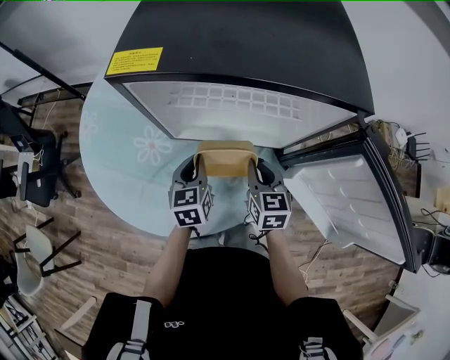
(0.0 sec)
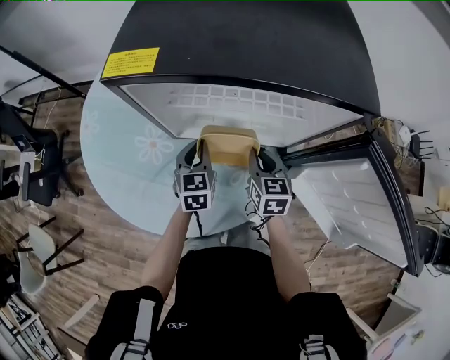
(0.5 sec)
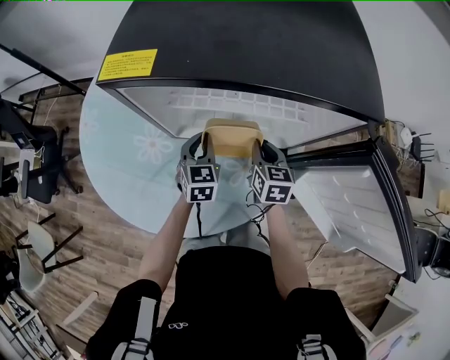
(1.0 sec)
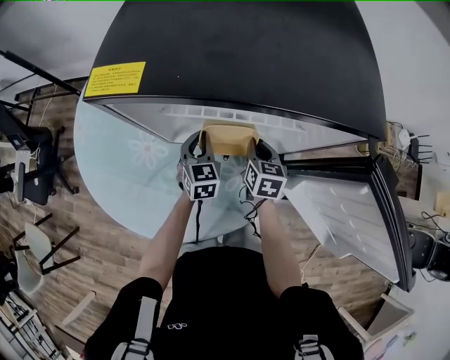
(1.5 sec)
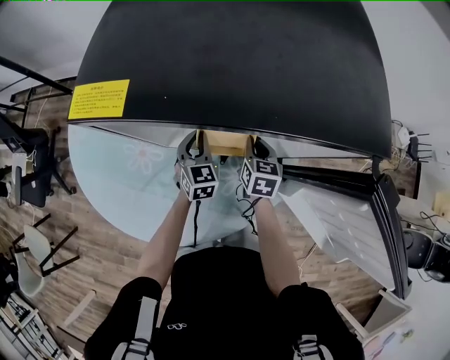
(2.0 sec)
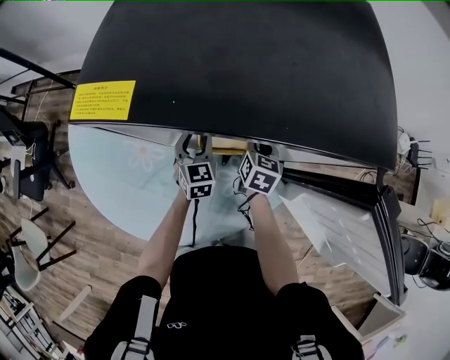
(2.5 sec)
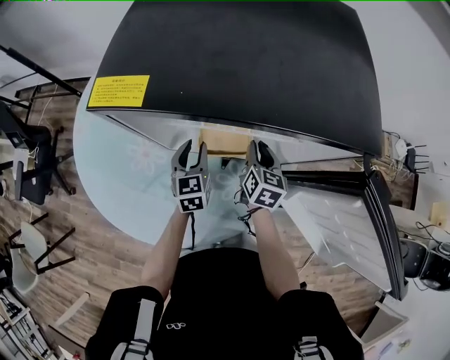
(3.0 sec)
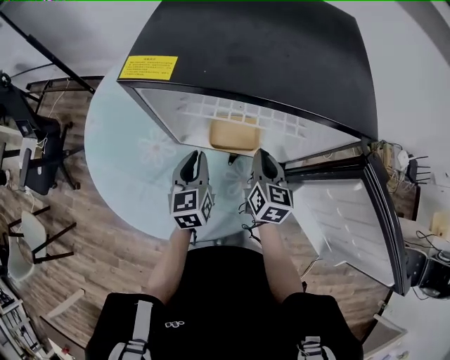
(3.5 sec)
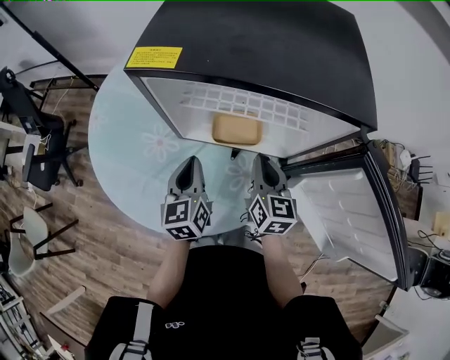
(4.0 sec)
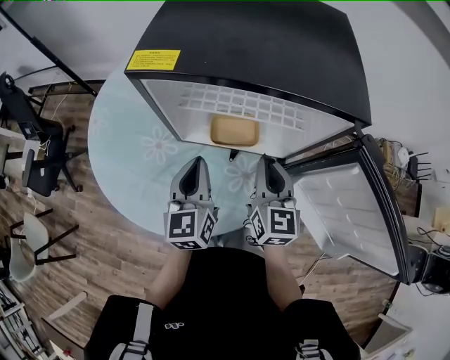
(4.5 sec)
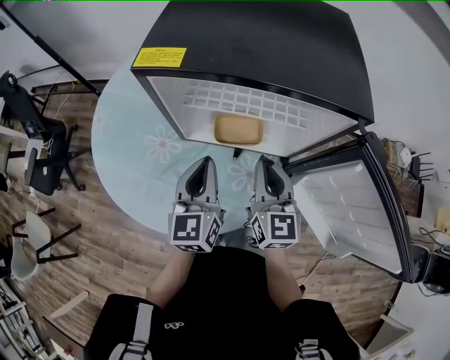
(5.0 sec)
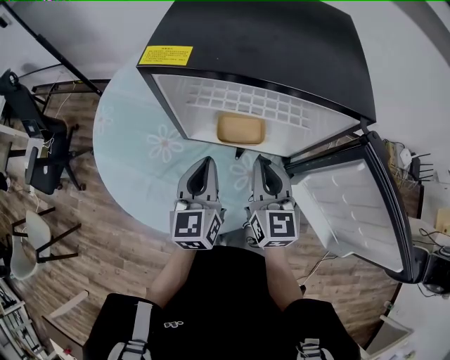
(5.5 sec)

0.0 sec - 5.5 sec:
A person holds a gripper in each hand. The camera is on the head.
0.0 sec - 2.0 sec: Both grippers move forward and downward, roughly 15 cm. The left gripper rotates about 20 degrees.
2.0 sec - 3.5 sec: The two grippers go approximately 10 cm upward and backward. The left gripper turns by roughly 20 degrees, and opens and closes again.
3.5 sec - 5.5 sec: Both grippers travel together upward and backward, approximately 10 cm.

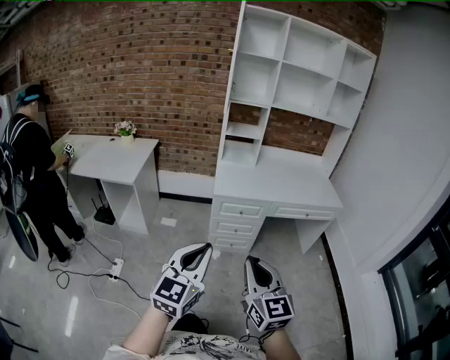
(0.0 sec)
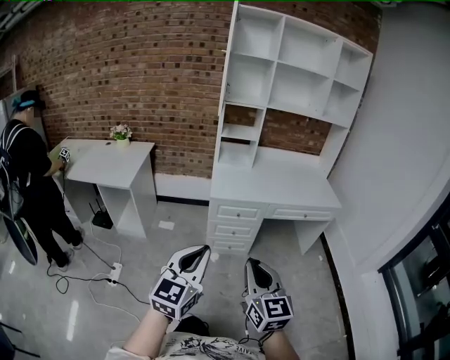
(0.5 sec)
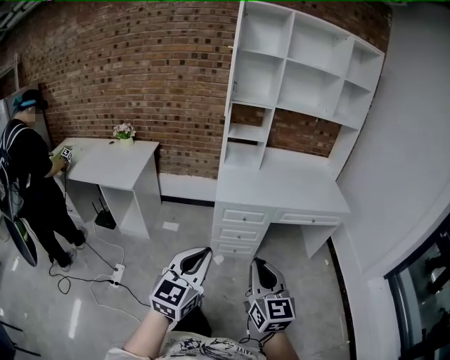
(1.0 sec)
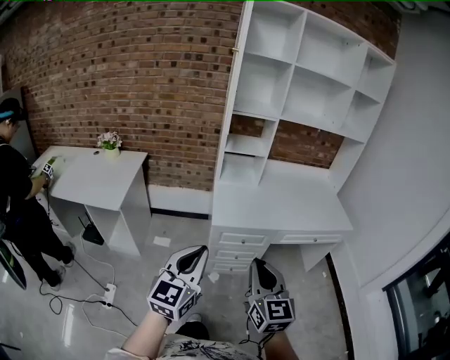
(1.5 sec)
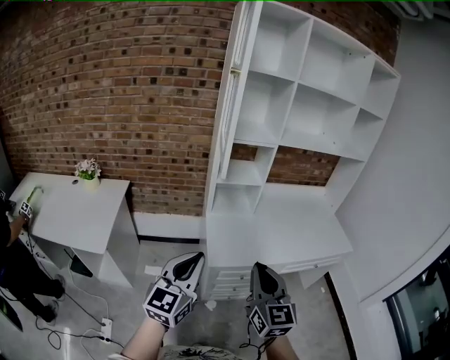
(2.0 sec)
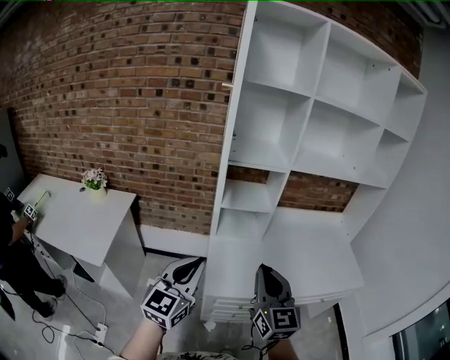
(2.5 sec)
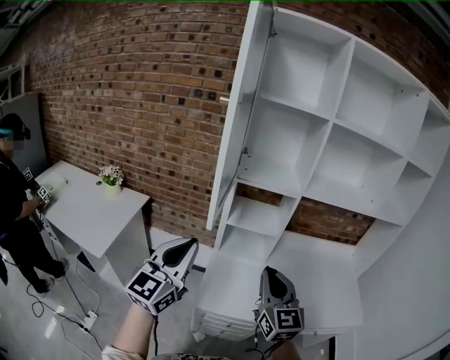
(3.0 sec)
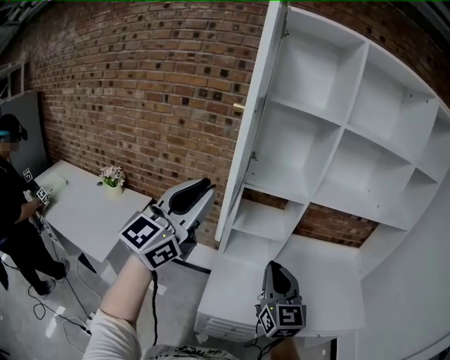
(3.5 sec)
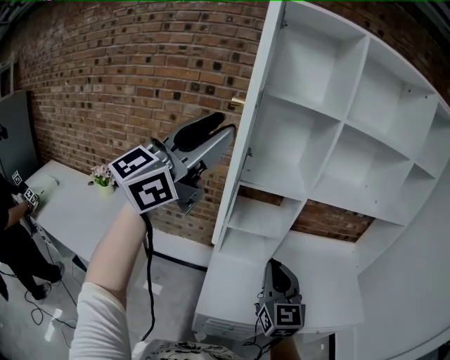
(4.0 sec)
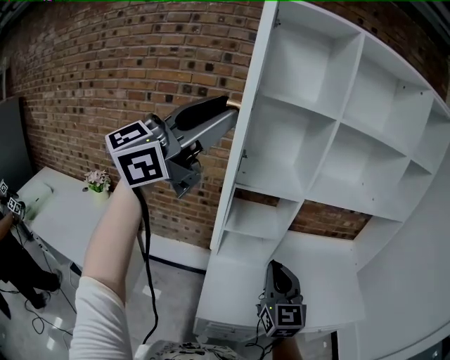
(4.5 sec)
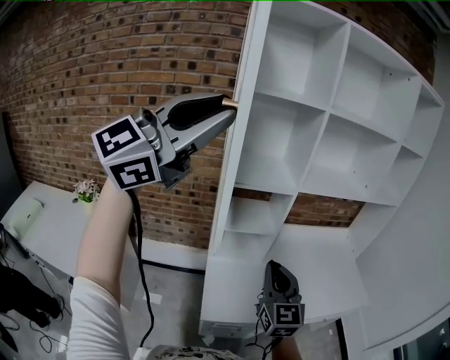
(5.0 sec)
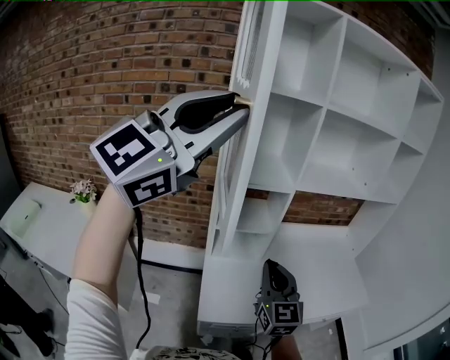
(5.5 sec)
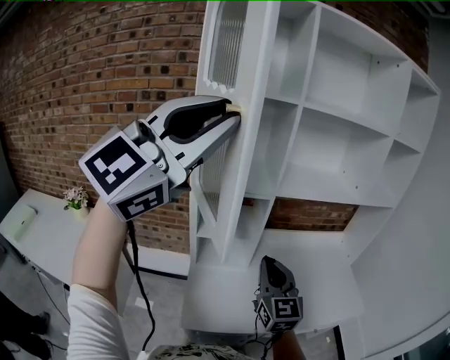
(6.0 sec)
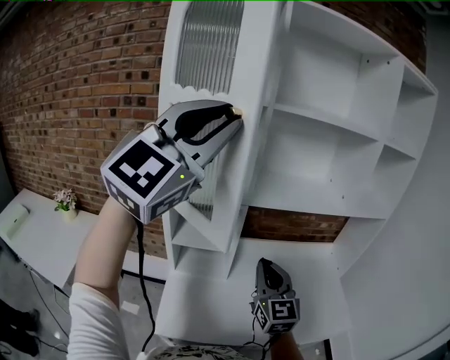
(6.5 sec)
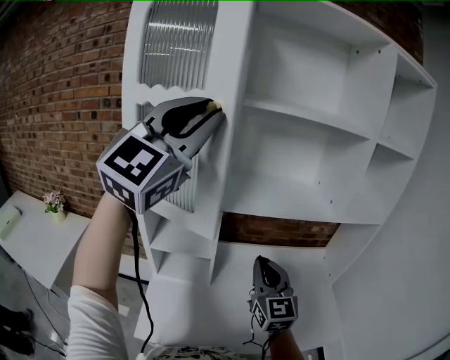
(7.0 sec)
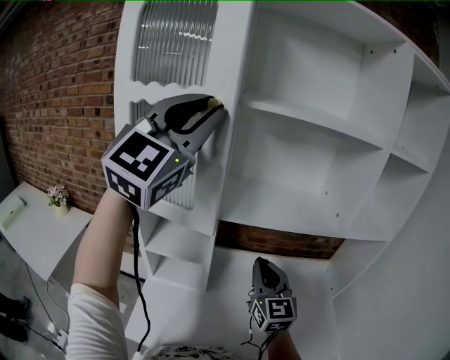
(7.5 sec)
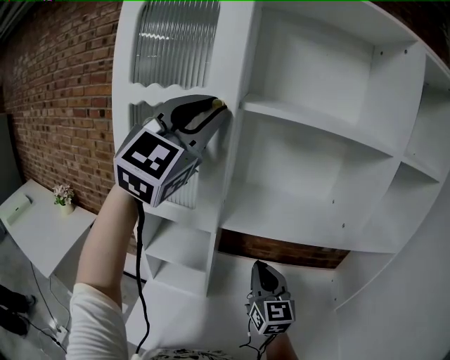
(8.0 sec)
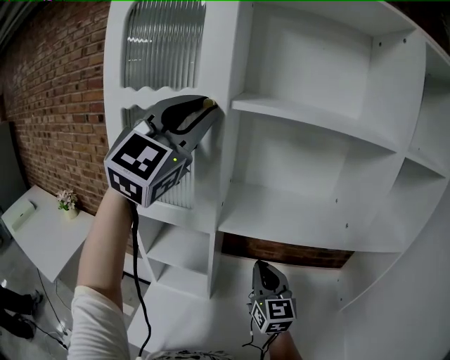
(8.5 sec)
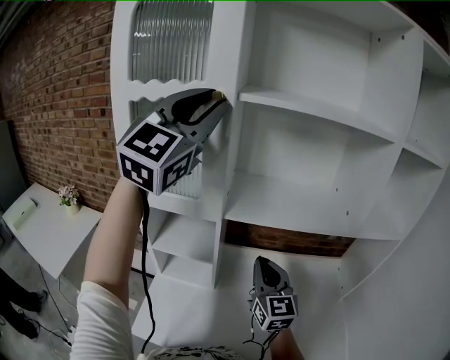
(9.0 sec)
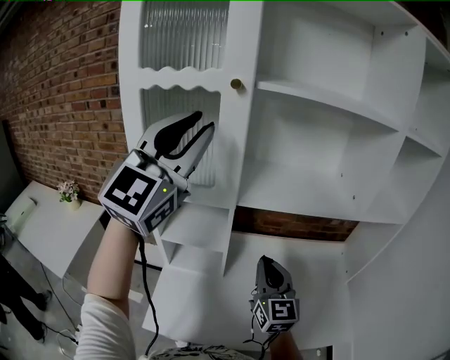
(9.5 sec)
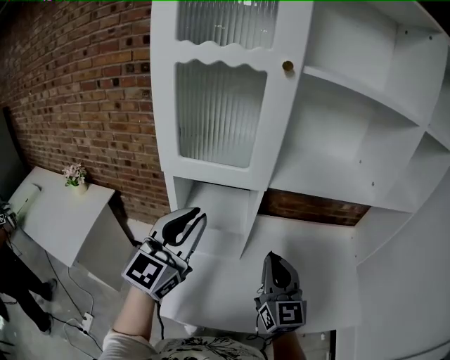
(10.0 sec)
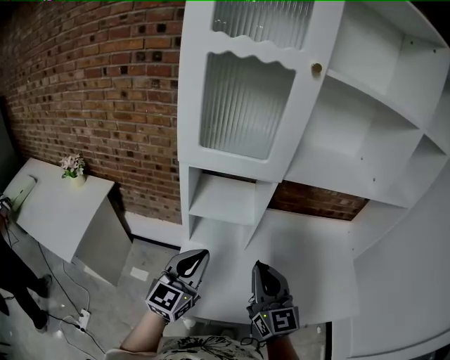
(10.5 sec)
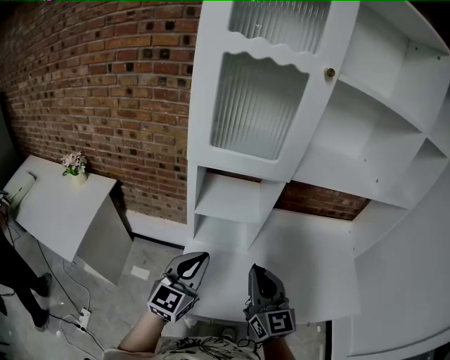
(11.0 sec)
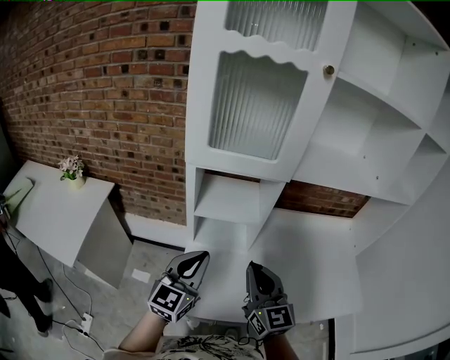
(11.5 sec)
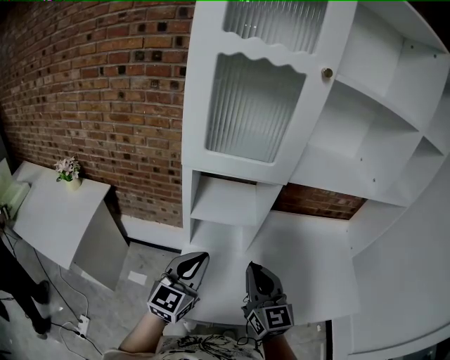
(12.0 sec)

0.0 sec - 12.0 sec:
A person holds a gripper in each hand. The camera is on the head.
0.0 sec - 2.0 sec: The pair of grippers is taken forward, approximately 50 cm.
2.0 sec - 4.0 sec: The right gripper is displaced forward by roughly 30 cm, while the left gripper heads upward and forward, covering some 50 cm, swivels about 30 degrees, and opens its fingers.
4.0 sec - 6.0 sec: The left gripper goes some 15 cm to the right and forward, and changes its angle by about 30 degrees, while the right gripper is displaced forward and to the right by roughly 10 cm.
6.0 sec - 8.0 sec: Both grippers move forward and to the right, about 30 cm. The left gripper changes its angle by some 30 degrees.
8.0 sec - 10.0 sec: The right gripper goes approximately 15 cm backward and to the left. The left gripper moves downward and backward, about 30 cm, and swivels some 30 degrees.
10.0 sec - 12.0 sec: The left gripper moves downward, approximately 15 cm, while the right gripper travels to the left and downward by approximately 10 cm.

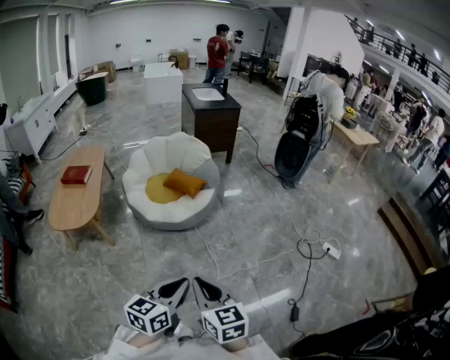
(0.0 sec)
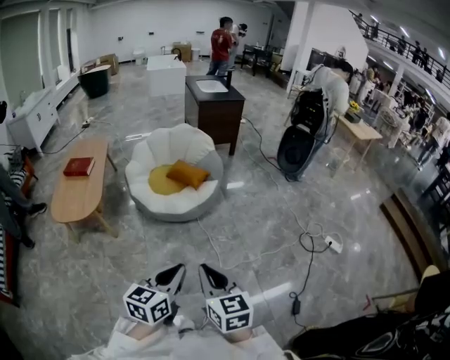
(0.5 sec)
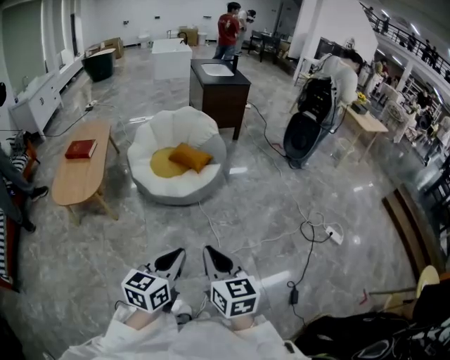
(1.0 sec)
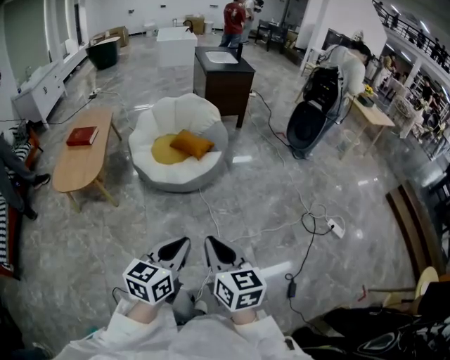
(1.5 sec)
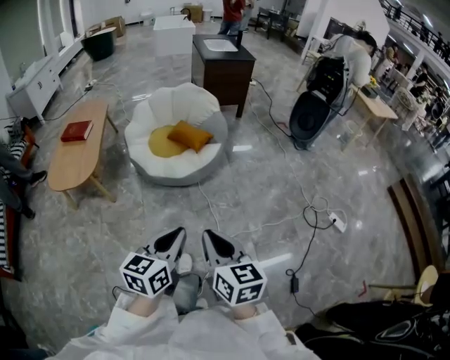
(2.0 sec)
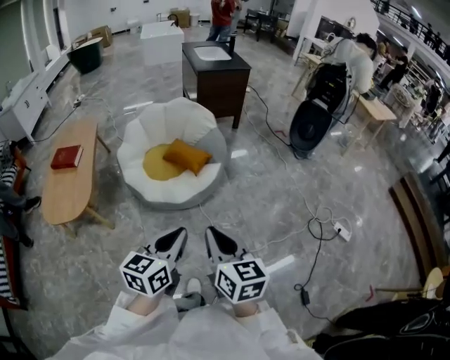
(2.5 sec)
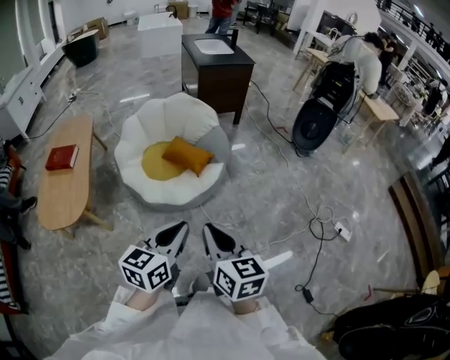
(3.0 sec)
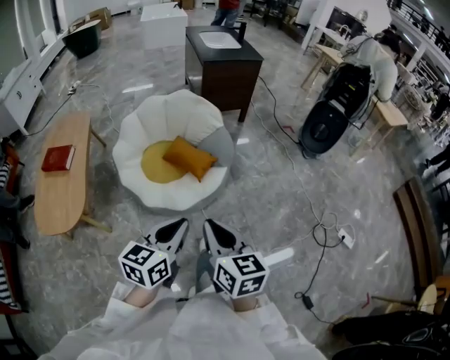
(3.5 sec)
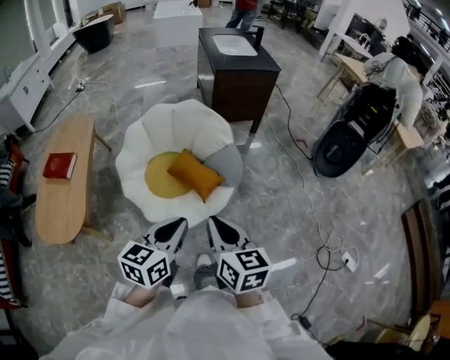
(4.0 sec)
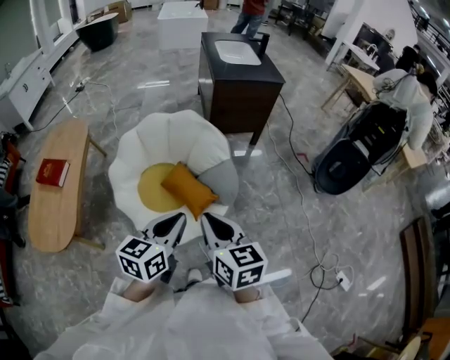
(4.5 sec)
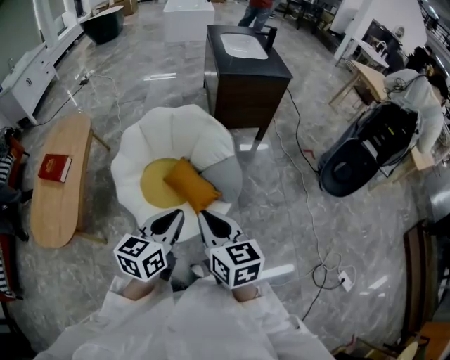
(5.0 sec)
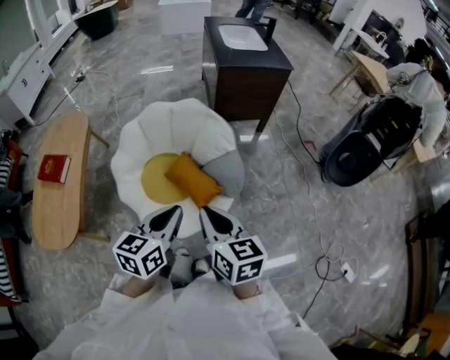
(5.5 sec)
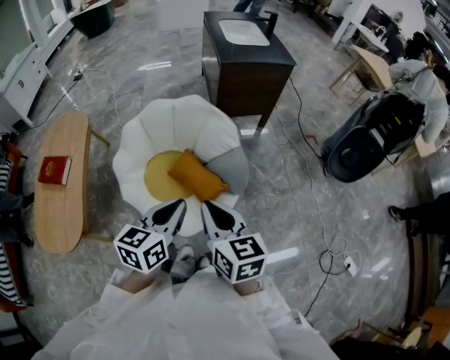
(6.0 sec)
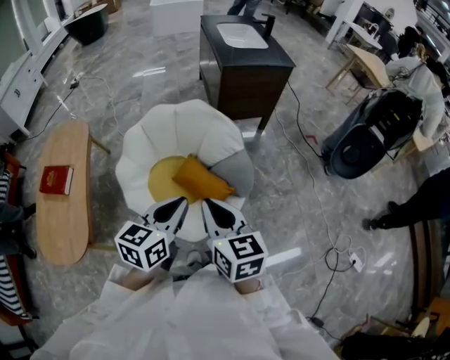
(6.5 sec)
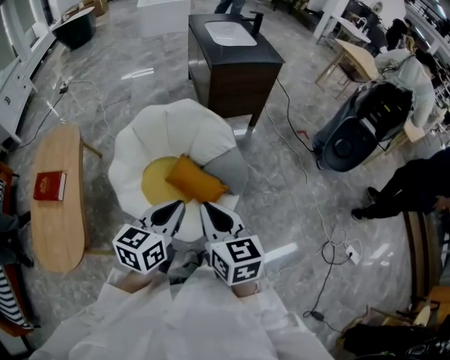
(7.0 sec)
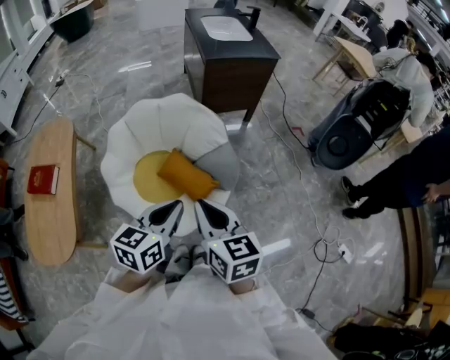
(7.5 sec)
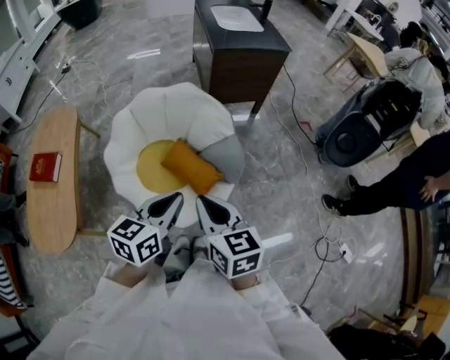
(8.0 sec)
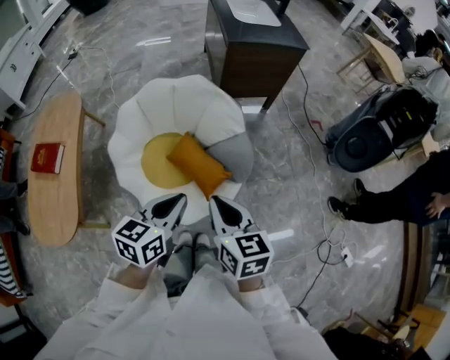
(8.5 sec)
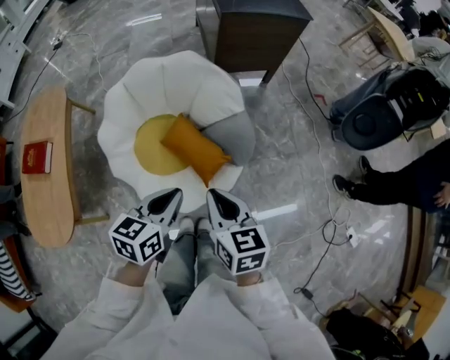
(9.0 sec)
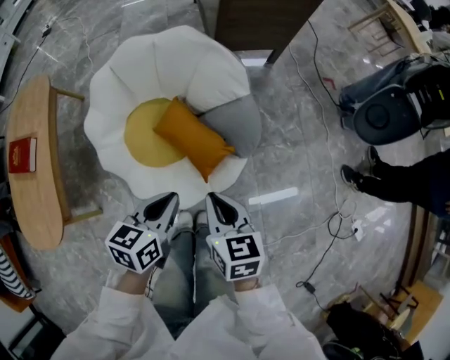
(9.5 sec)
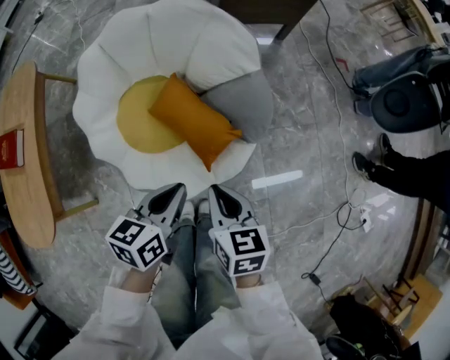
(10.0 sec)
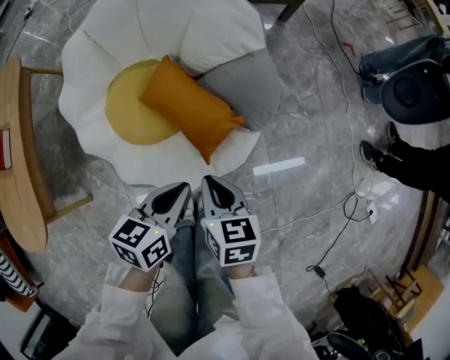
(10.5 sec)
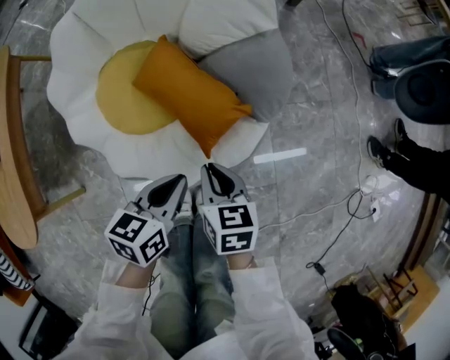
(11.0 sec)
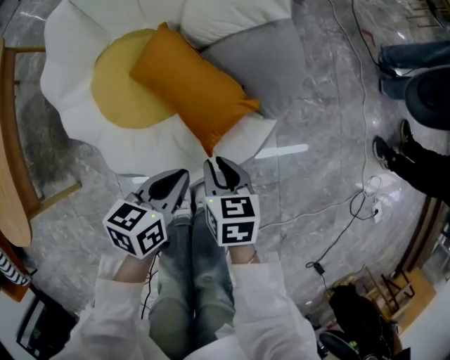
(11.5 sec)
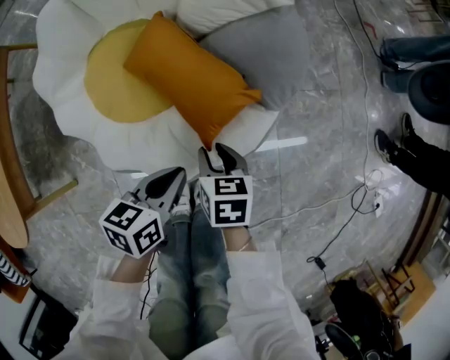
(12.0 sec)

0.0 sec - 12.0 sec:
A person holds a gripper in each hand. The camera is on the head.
0.0 sec - 2.0 sec: The two grippers go about 10 cm forward.
2.0 sec - 4.0 sec: Both grippers are carried forward, about 50 cm.
4.0 sec - 6.0 sec: The grippers both shift forward by some 20 cm.
6.0 sec - 8.0 sec: The grippers move only a little.
8.0 sec - 10.0 sec: Both grippers move downward, some 30 cm. The right gripper rotates about 20 degrees.
10.0 sec - 12.0 sec: The grippers both shift downward by roughly 25 cm. The right gripper opens its fingers.
